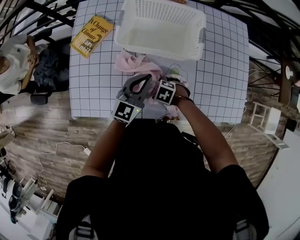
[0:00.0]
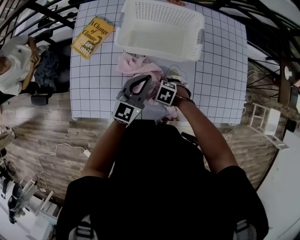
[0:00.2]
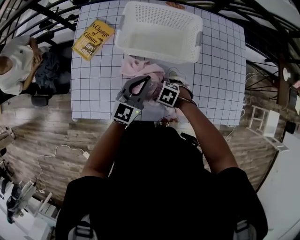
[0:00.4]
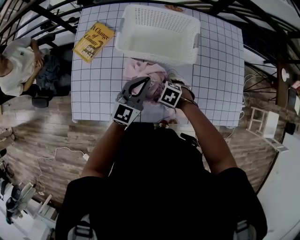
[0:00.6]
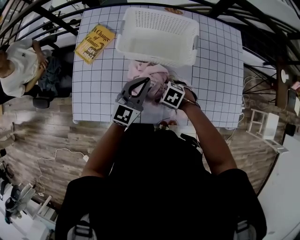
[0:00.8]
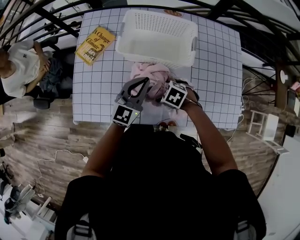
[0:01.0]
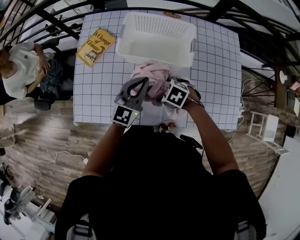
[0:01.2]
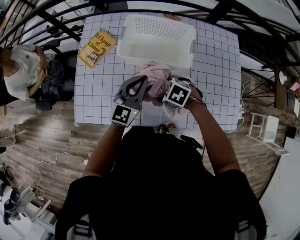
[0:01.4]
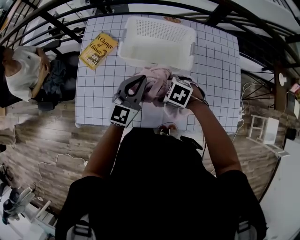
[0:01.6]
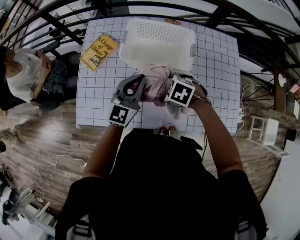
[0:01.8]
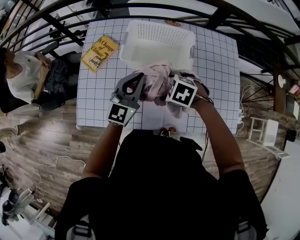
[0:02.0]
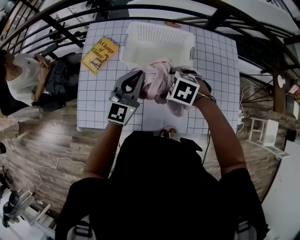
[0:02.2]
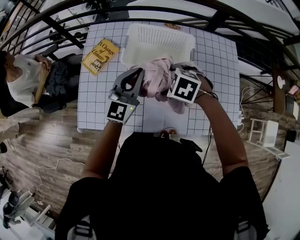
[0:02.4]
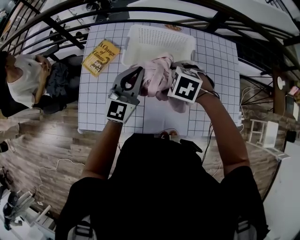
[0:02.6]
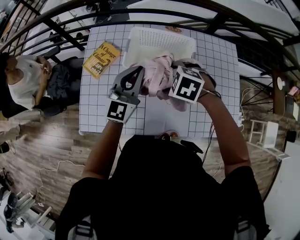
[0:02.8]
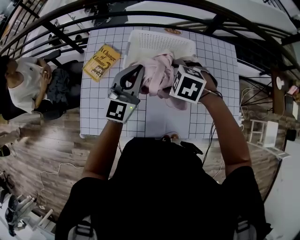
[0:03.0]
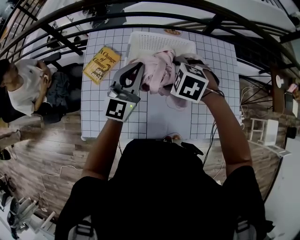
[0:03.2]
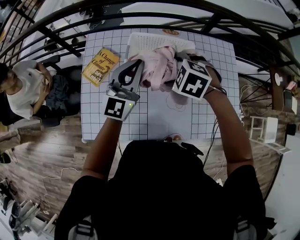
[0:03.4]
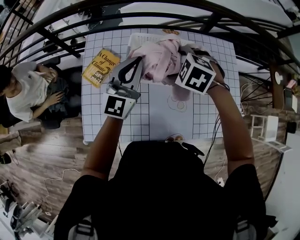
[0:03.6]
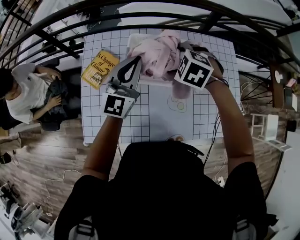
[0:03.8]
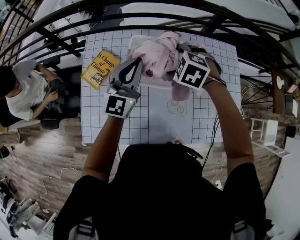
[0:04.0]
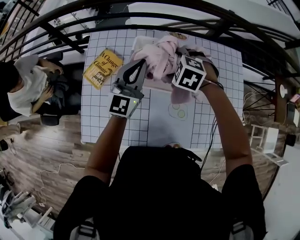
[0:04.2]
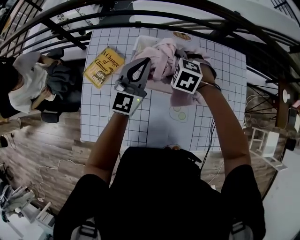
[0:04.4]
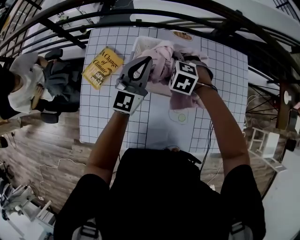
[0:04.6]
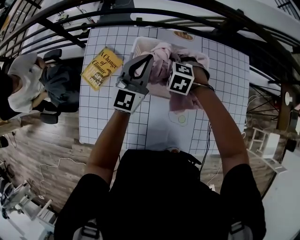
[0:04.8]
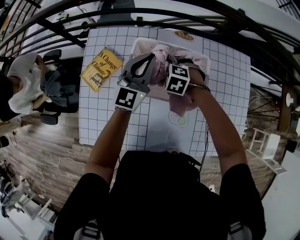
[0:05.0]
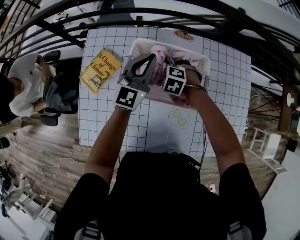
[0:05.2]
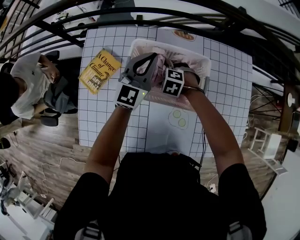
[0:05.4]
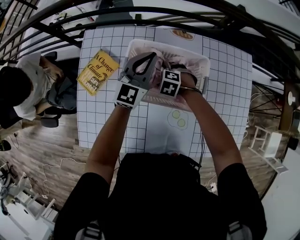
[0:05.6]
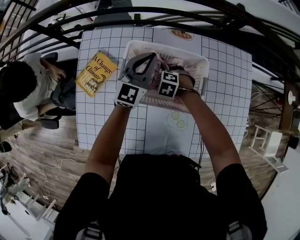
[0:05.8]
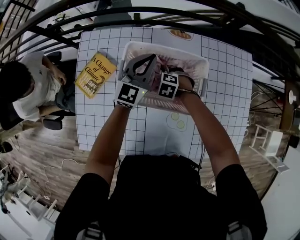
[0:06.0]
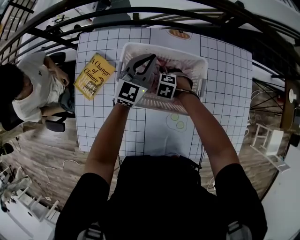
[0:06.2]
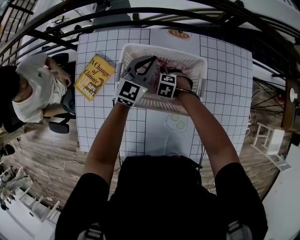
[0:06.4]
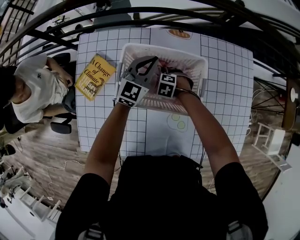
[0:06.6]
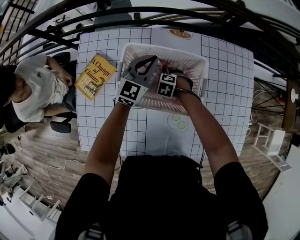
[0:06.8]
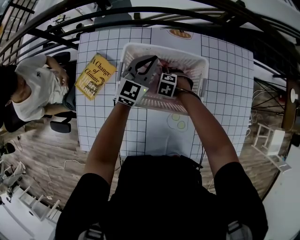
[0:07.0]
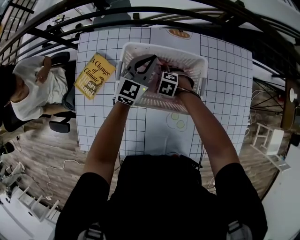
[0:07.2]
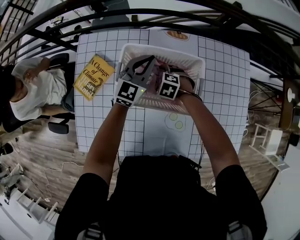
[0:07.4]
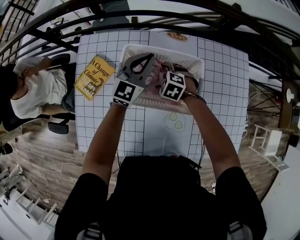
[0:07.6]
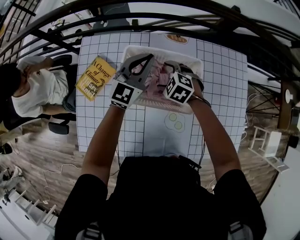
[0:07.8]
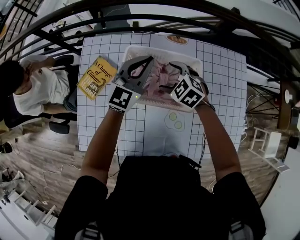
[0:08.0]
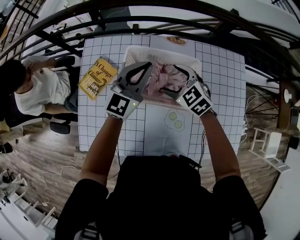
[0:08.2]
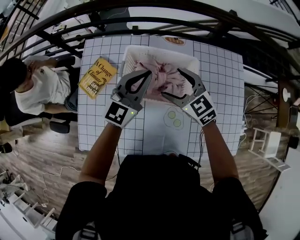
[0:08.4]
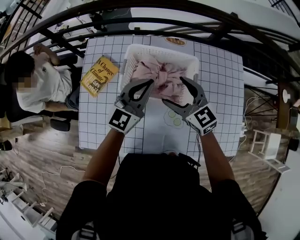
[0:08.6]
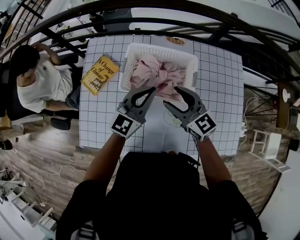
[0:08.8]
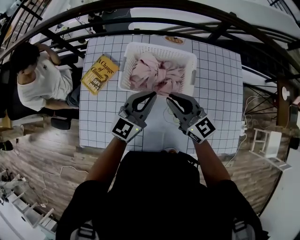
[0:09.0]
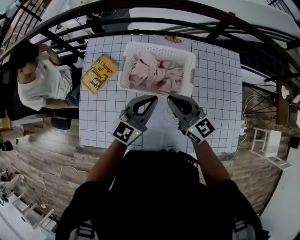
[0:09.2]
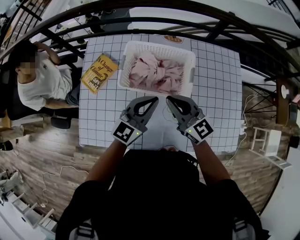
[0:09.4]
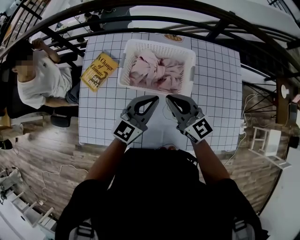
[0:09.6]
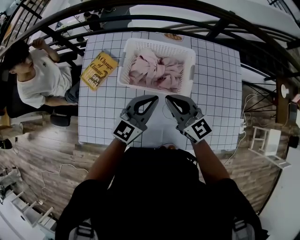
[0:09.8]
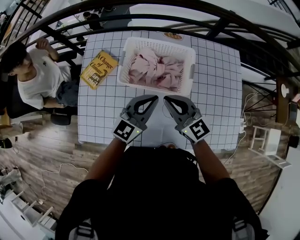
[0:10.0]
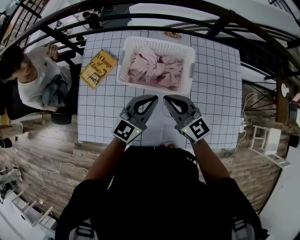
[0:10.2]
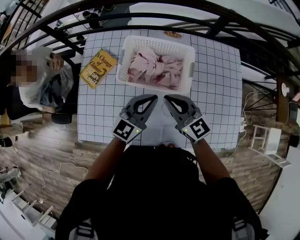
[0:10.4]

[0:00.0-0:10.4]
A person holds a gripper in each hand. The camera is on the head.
0:00.0 to 0:01.4: The left gripper moves upward, roughly 10 cm, while the right gripper goes roughly 15 cm upward.
0:01.4 to 0:03.0: Both grippers move upward and forward, roughly 15 cm.
0:03.0 to 0:04.4: The right gripper is displaced forward and downward by roughly 15 cm. The left gripper moves forward, some 10 cm.
0:04.4 to 0:06.0: The right gripper goes about 20 cm downward, while the left gripper moves downward, forward and to the right, approximately 15 cm.
0:06.0 to 0:07.4: The grippers move only a little.
0:07.4 to 0:09.0: The left gripper moves backward and upward, approximately 20 cm. Meanwhile the right gripper travels upward and backward by roughly 30 cm, tips its fingers upward by some 60 degrees, and closes up.
0:09.0 to 0:10.4: There are only small adjustments of the grippers.

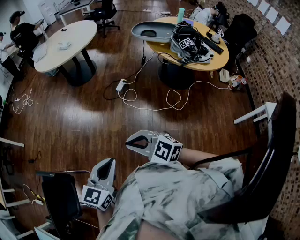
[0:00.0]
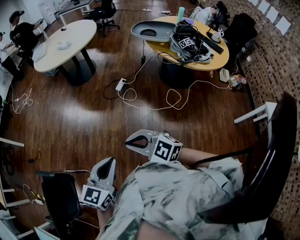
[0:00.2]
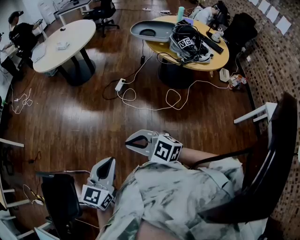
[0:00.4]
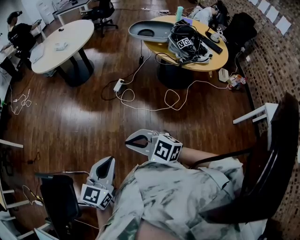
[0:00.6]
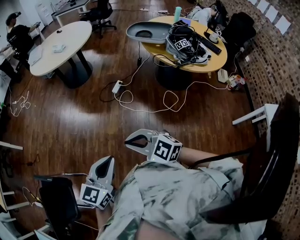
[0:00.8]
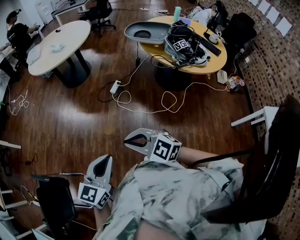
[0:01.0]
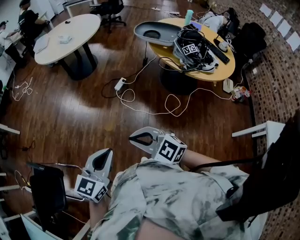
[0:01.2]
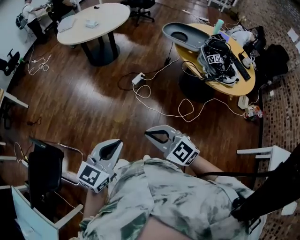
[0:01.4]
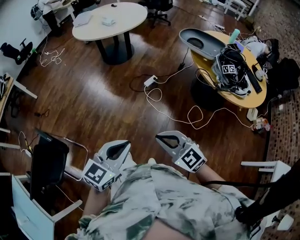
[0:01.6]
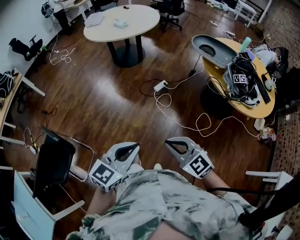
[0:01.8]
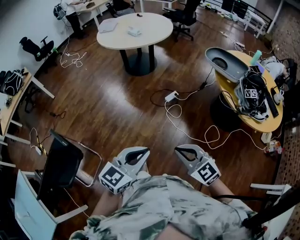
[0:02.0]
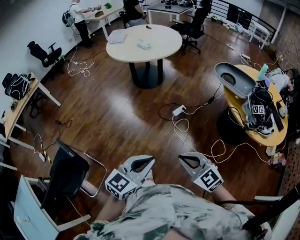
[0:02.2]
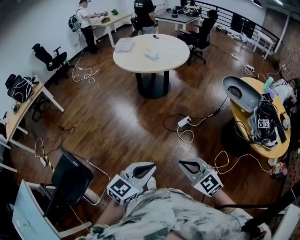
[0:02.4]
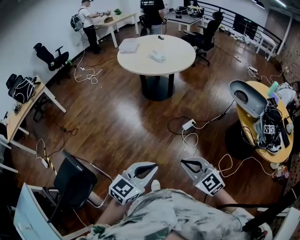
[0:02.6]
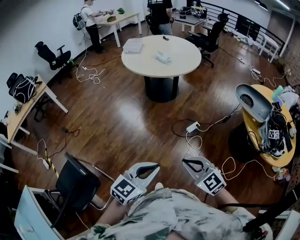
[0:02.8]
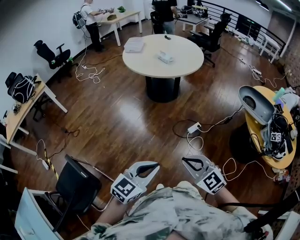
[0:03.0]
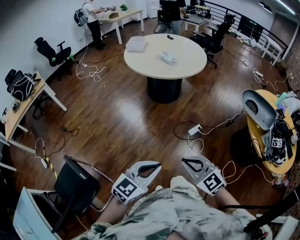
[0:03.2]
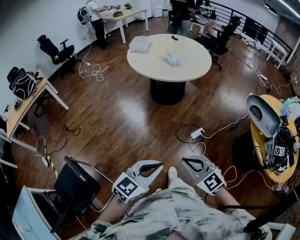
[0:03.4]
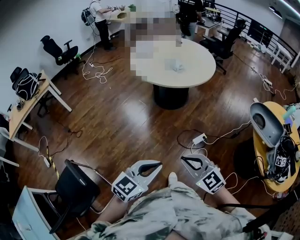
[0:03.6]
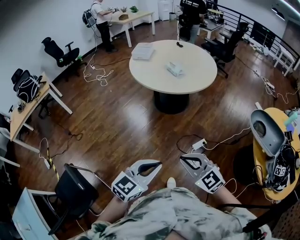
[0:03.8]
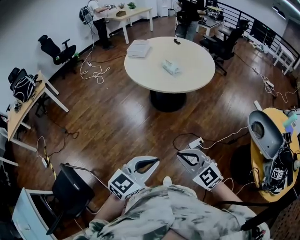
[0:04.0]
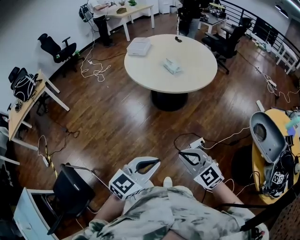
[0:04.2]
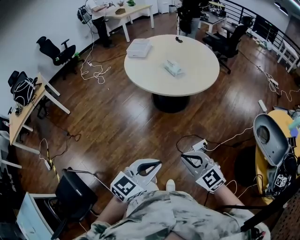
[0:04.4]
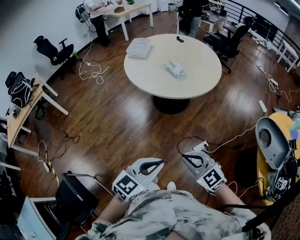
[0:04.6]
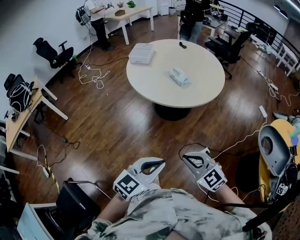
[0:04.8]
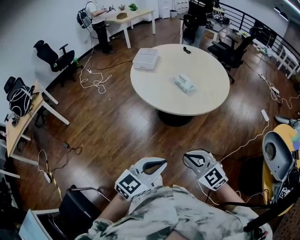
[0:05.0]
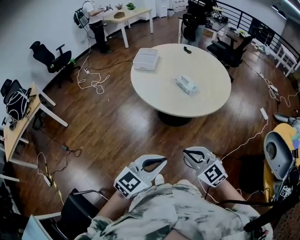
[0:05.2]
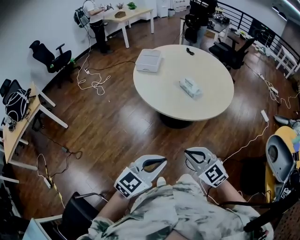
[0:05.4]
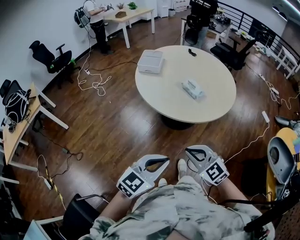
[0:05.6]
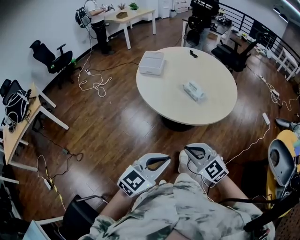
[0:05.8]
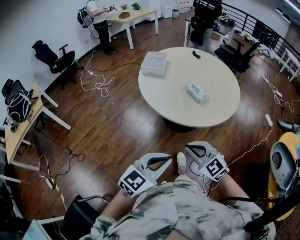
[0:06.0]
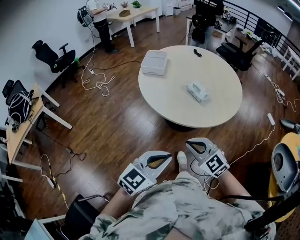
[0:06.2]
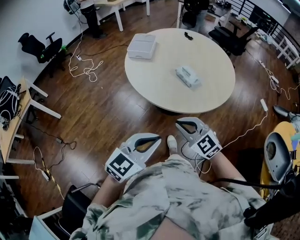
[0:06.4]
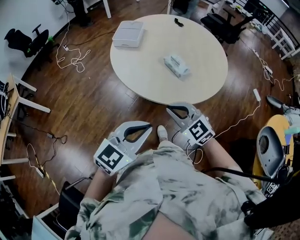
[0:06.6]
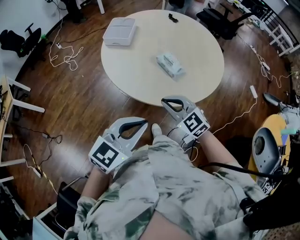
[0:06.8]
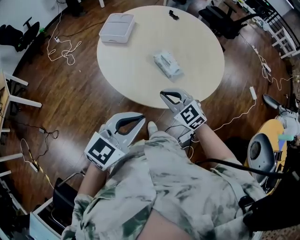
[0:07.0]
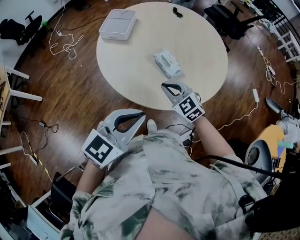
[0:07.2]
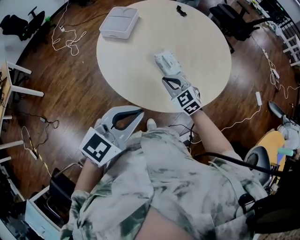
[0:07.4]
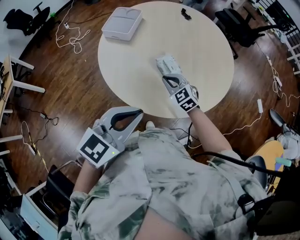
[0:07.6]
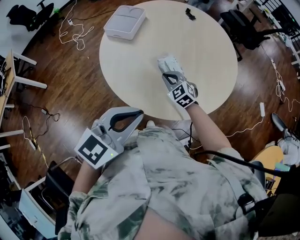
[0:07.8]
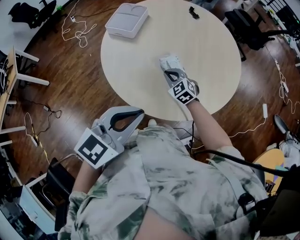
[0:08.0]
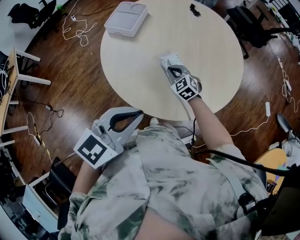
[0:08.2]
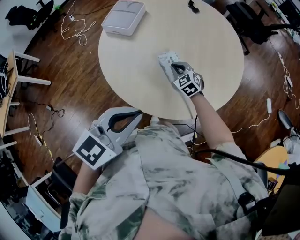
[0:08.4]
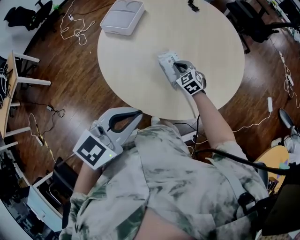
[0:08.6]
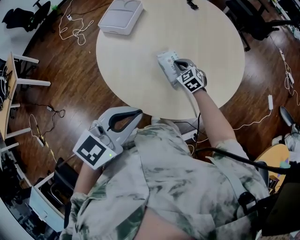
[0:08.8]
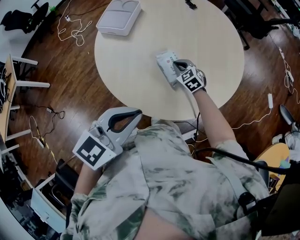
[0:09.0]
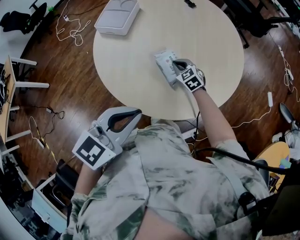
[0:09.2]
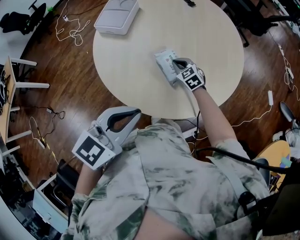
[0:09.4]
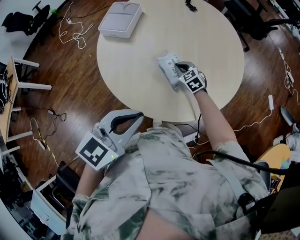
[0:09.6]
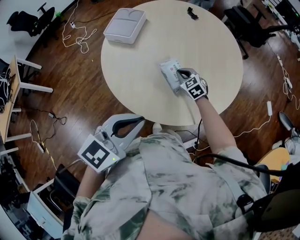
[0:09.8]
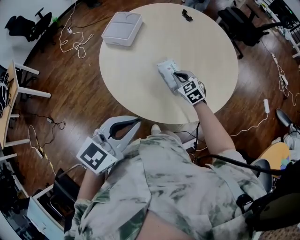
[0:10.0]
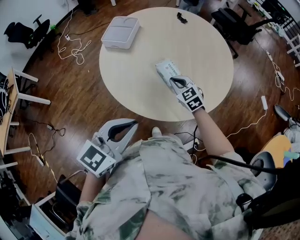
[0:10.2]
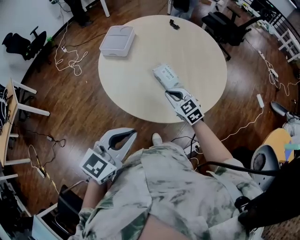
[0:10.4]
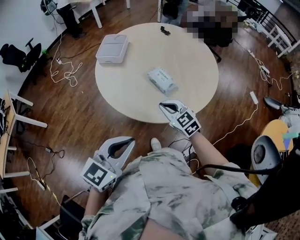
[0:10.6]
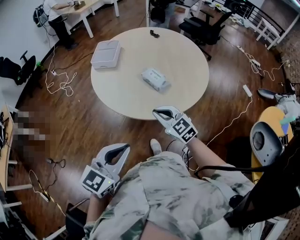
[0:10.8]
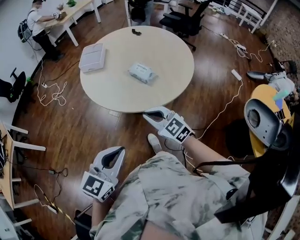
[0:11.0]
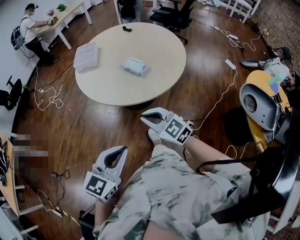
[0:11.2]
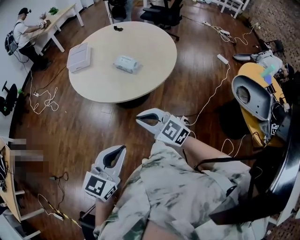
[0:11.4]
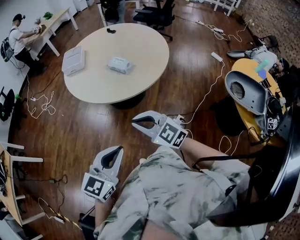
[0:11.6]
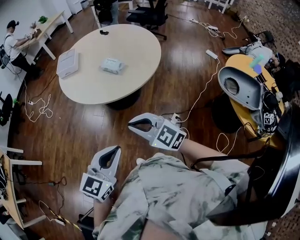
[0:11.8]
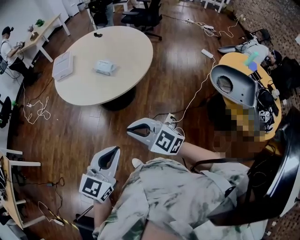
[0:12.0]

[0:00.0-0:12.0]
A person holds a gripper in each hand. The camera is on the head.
0:00.0 to 0:01.6: The grippers both shift to the right and forward by about 15 cm.
0:01.6 to 0:03.0: Both grippers move forward and to the left, approximately 30 cm.
0:03.0 to 0:04.4: The grippers both shift forward by some 25 cm.
0:04.4 to 0:06.0: Both grippers move forward and to the left, approximately 30 cm.
0:06.0 to 0:07.6: The right gripper heads forward, covering some 35 cm, while the left gripper goes some 30 cm forward and to the right.
0:07.6 to 0:09.0: The right gripper heads forward and downward, covering about 15 cm.
0:09.0 to 0:10.4: The right gripper travels backward and upward by approximately 20 cm, while the left gripper shifts some 10 cm backward and to the left.
0:10.4 to 0:12.0: The grippers both shift backward by some 35 cm.

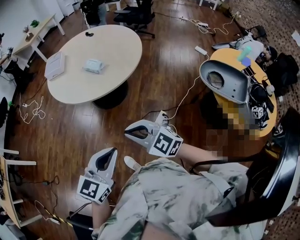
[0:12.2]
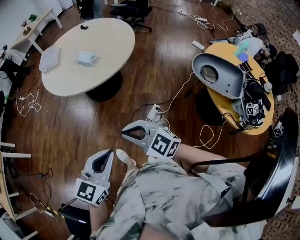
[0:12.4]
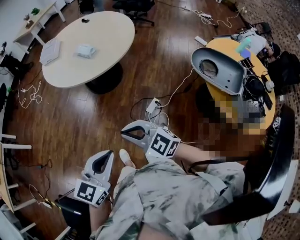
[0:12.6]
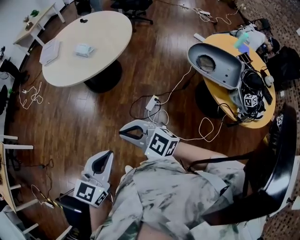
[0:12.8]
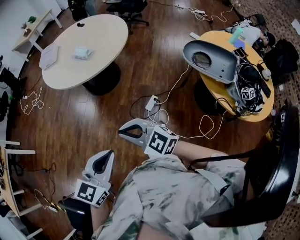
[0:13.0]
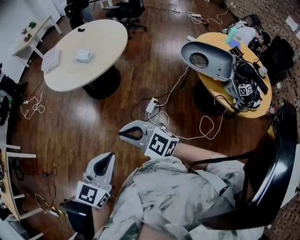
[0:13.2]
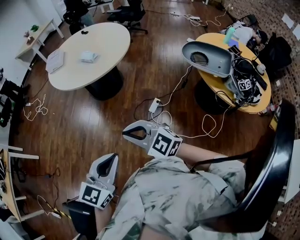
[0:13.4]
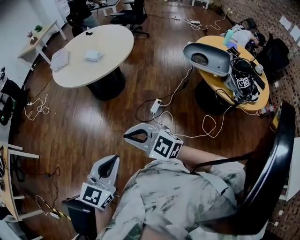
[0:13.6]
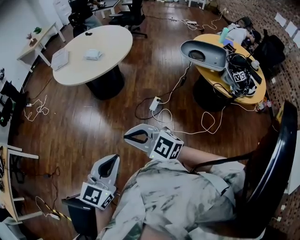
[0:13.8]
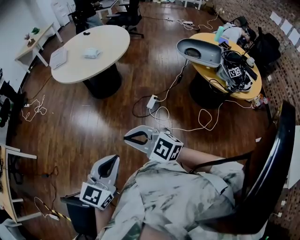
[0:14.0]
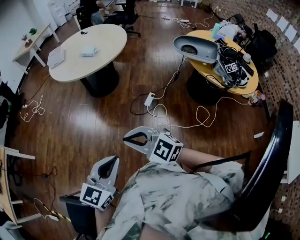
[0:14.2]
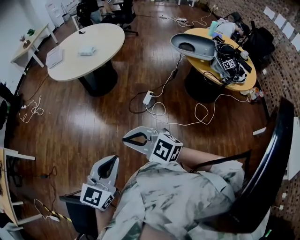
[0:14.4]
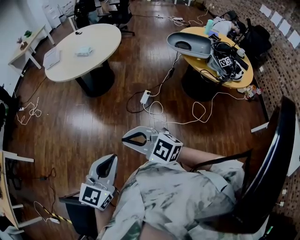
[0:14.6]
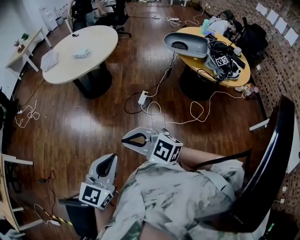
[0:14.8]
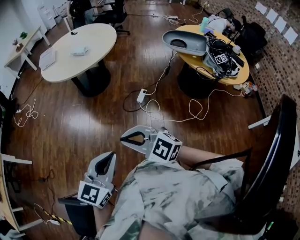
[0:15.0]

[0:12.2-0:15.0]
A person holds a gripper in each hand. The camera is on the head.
0:12.2 to 0:13.6: The grippers both shift backward by roughly 25 cm.
0:13.6 to 0:15.0: Both grippers travel together backward, some 15 cm.
